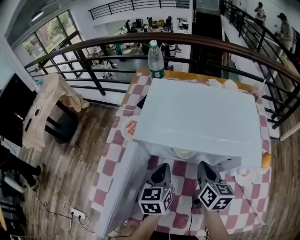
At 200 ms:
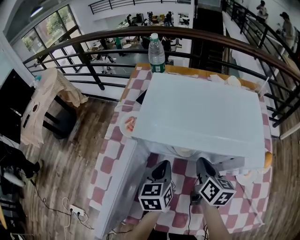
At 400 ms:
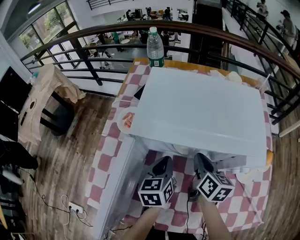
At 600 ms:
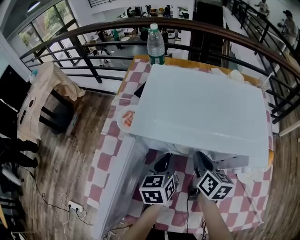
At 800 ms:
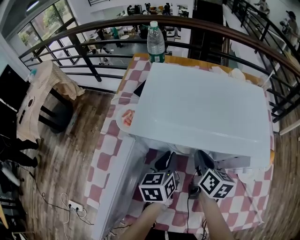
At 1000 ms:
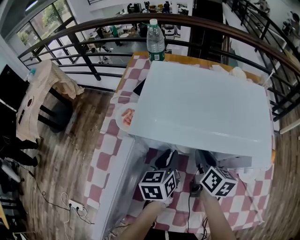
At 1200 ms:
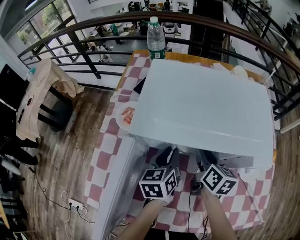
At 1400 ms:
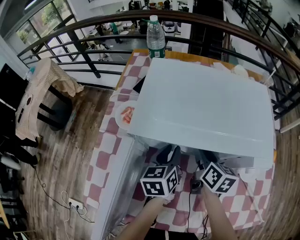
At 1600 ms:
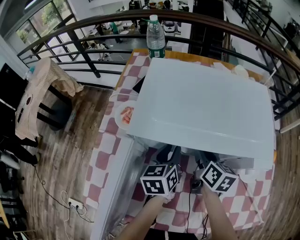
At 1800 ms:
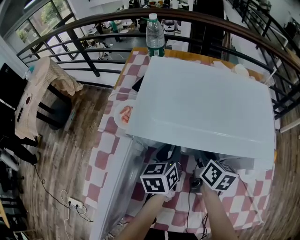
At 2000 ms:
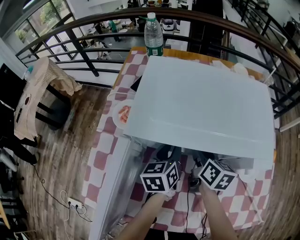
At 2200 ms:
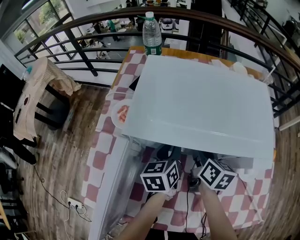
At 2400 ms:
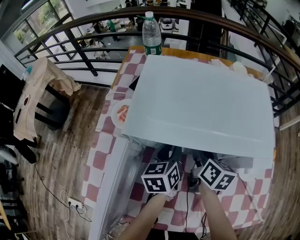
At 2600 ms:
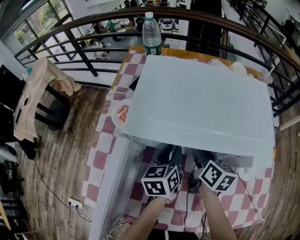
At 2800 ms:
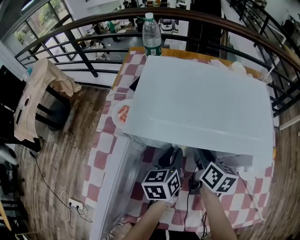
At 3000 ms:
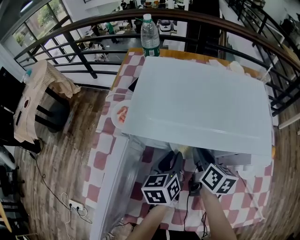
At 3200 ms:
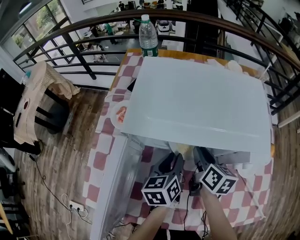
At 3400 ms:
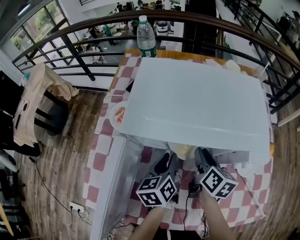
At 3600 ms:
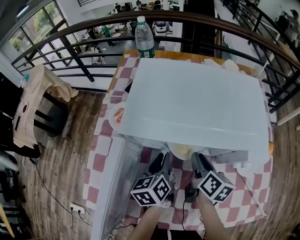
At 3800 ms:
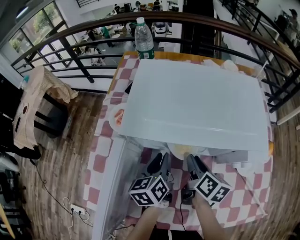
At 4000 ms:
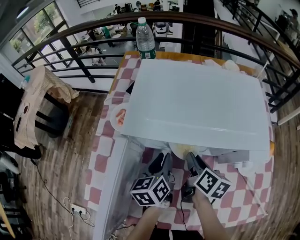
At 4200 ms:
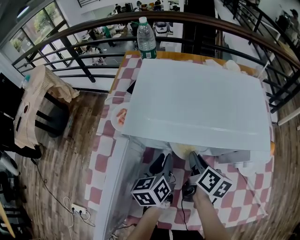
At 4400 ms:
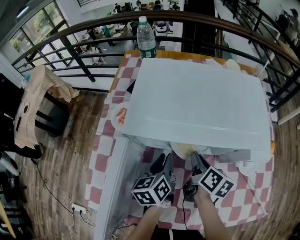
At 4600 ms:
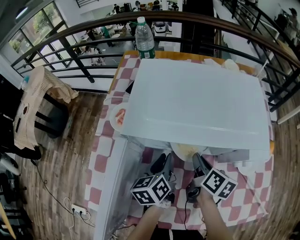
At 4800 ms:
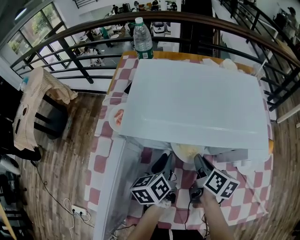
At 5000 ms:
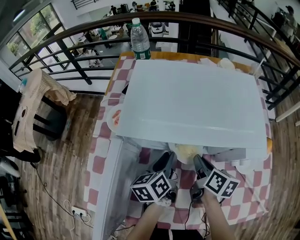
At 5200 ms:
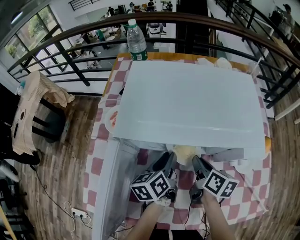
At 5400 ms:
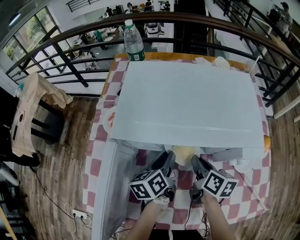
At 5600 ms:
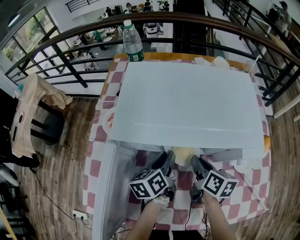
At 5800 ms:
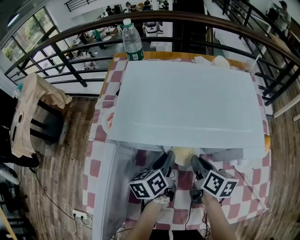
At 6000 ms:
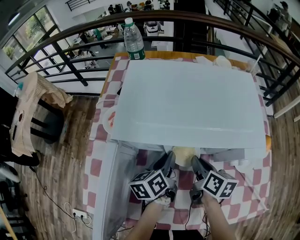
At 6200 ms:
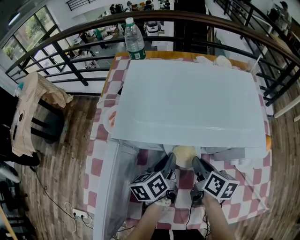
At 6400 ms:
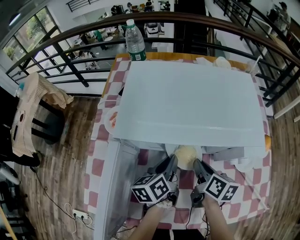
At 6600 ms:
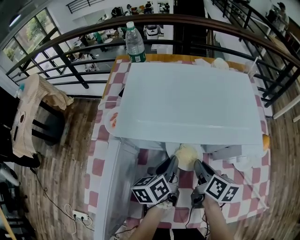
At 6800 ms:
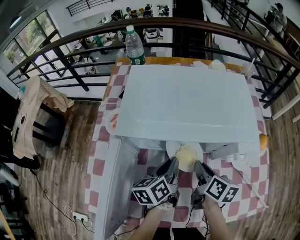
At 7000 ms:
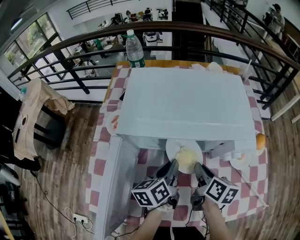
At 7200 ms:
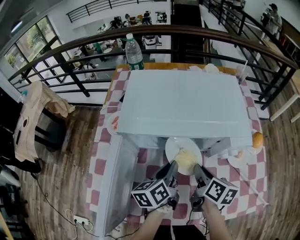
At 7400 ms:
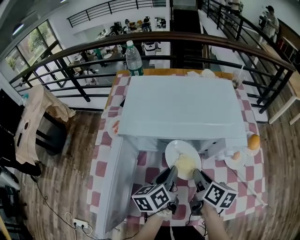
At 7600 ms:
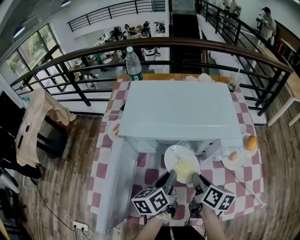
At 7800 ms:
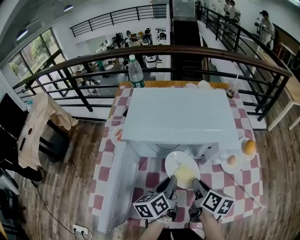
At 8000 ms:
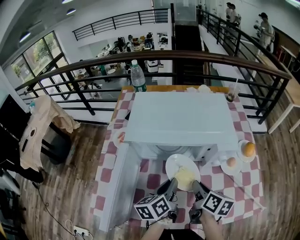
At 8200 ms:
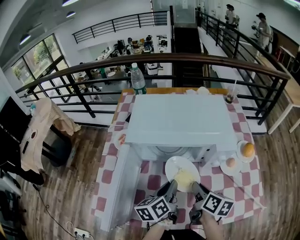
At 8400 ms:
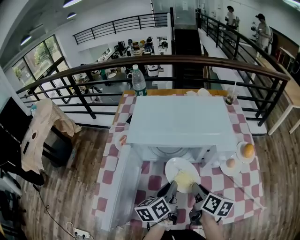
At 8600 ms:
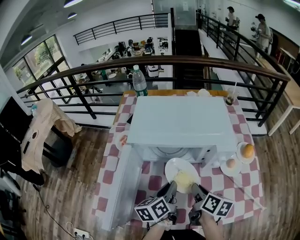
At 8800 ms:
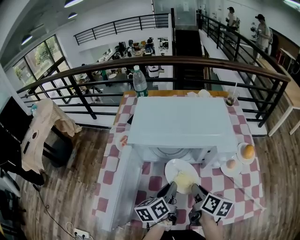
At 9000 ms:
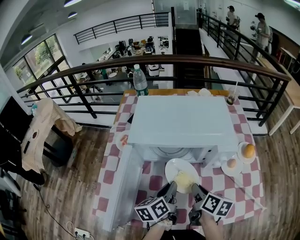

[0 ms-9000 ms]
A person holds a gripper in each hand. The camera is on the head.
0 ms to 1600 ms: The two grippers go approximately 5 cm forward. The left gripper opens. Meanwhile the right gripper opens up.
1600 ms to 4400 ms: The grippers make only small movements.
4400 ms to 6000 ms: There are only small adjustments of the grippers.
6000 ms to 7600 ms: The right gripper moves backward, about 10 cm. The left gripper moves backward and upward, approximately 10 cm.
7600 ms to 9000 ms: There are only small adjustments of the grippers.

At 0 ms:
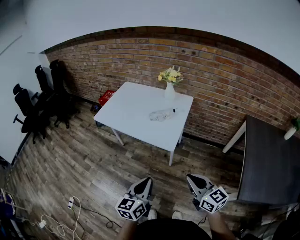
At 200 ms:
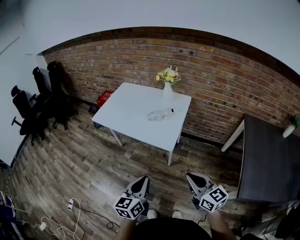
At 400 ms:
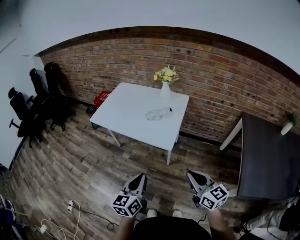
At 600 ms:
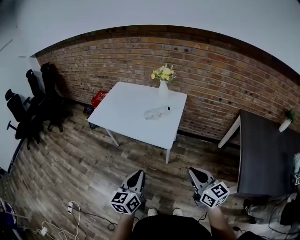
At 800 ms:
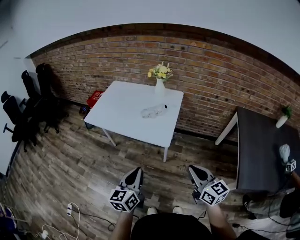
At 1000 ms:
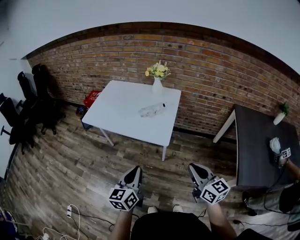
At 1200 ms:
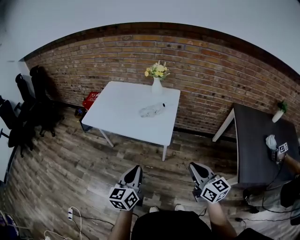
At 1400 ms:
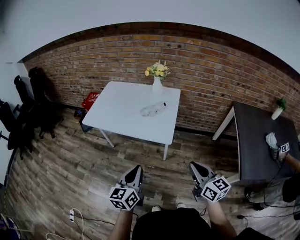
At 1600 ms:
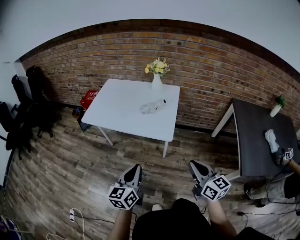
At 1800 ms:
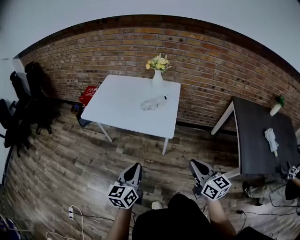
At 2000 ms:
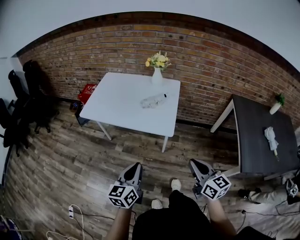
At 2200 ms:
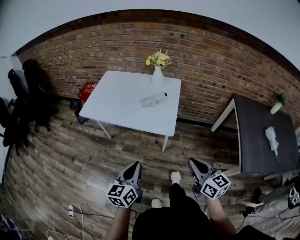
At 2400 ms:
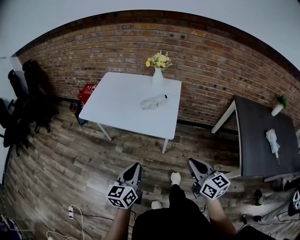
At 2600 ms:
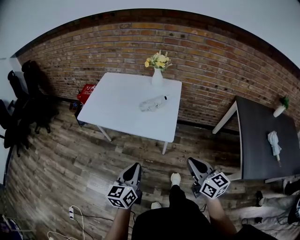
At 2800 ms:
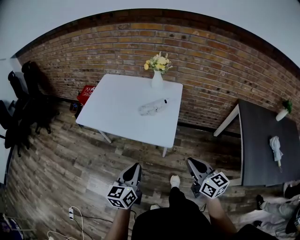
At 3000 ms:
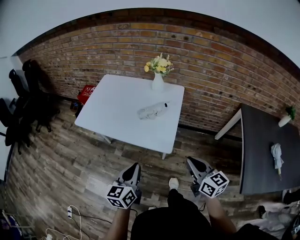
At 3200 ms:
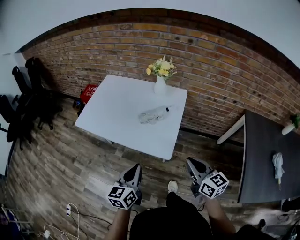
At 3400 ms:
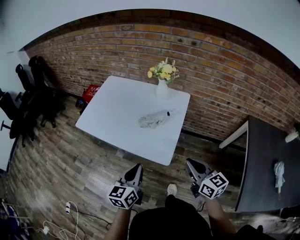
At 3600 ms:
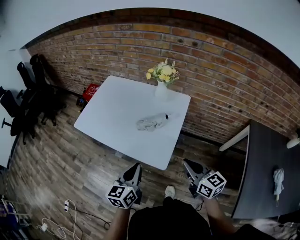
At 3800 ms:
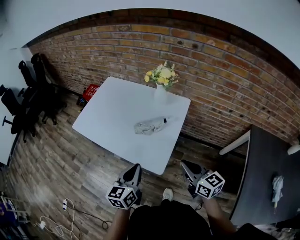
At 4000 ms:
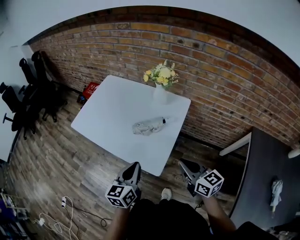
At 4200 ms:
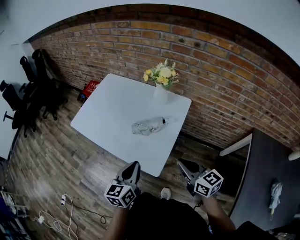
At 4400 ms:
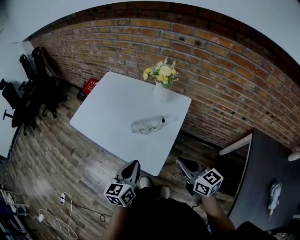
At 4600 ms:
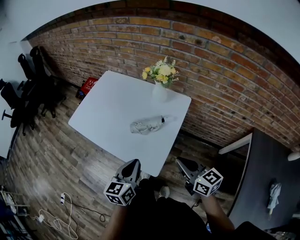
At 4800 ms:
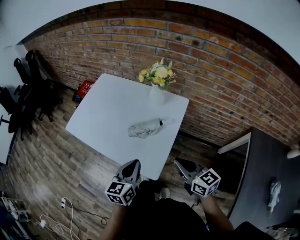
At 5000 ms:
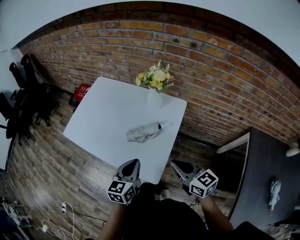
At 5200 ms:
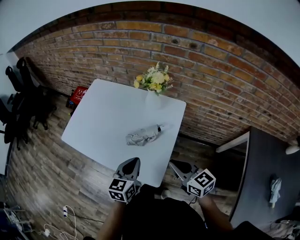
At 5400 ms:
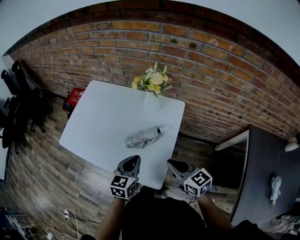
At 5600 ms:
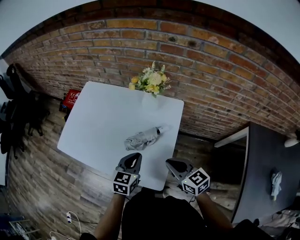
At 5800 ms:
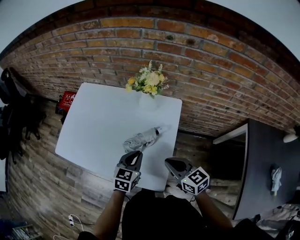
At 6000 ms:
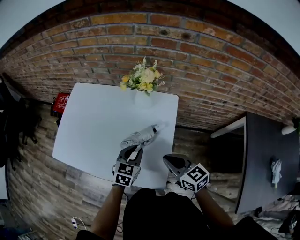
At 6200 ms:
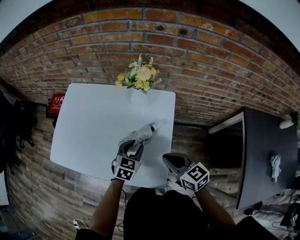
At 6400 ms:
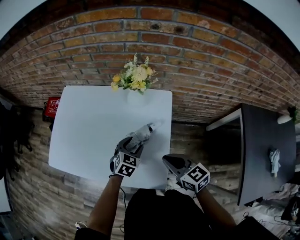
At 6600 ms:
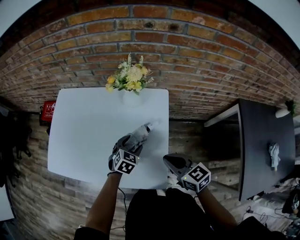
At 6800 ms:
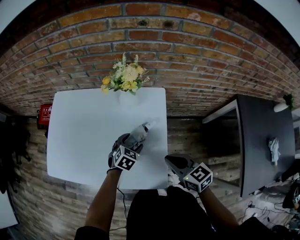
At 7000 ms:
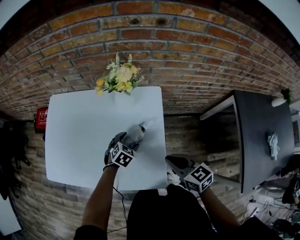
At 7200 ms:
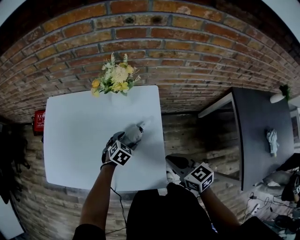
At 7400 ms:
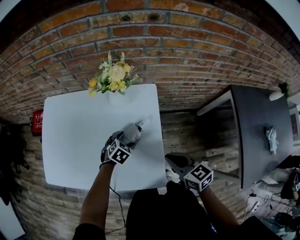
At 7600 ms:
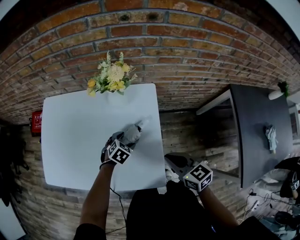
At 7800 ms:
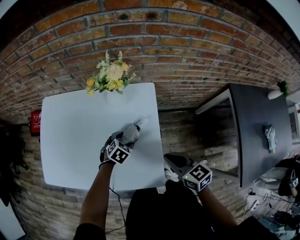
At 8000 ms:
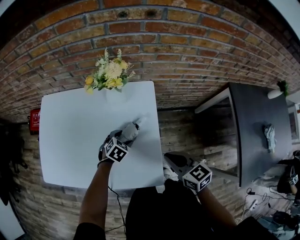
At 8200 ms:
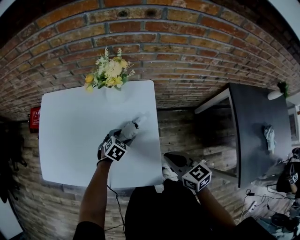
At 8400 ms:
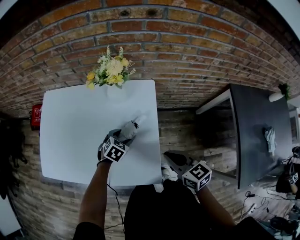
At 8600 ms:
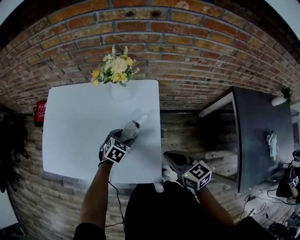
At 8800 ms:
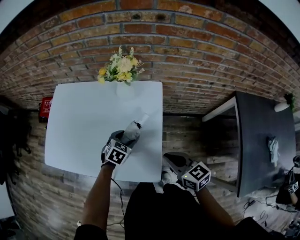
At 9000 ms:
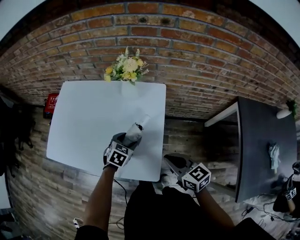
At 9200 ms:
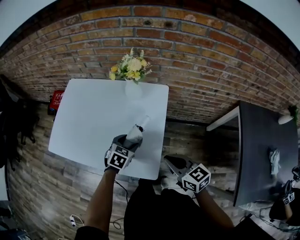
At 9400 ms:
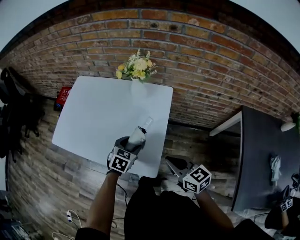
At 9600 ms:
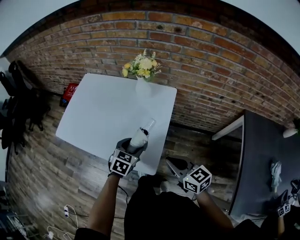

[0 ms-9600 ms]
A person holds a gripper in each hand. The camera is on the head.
0 ms to 1600 ms: The left gripper goes about 10 cm to the left.
1600 ms to 3200 ms: Both grippers travel together forward, some 15 cm.
3200 ms to 4800 ms: The right gripper is displaced forward by roughly 15 cm, while the left gripper goes some 15 cm forward and to the right.
4800 ms to 6400 ms: The right gripper moves forward and downward, approximately 10 cm, while the left gripper goes about 25 cm forward and downward, changes its angle by roughly 50 degrees, and opens up.
6400 ms to 8000 ms: The right gripper shifts by approximately 5 cm, while the left gripper travels downward by roughly 10 cm, and rotates roughly 20 degrees.
8000 ms to 9600 ms: The left gripper moves backward and upward, approximately 20 cm, and swivels roughly 30 degrees. Meanwhile the right gripper shifts some 10 cm backward, and rotates roughly 20 degrees.

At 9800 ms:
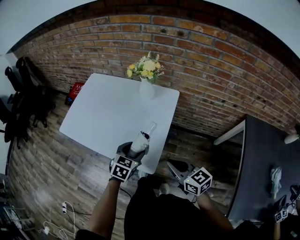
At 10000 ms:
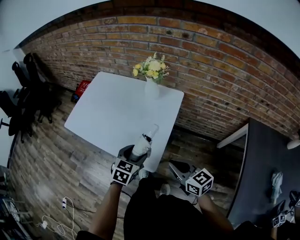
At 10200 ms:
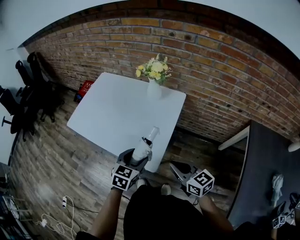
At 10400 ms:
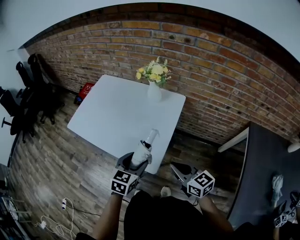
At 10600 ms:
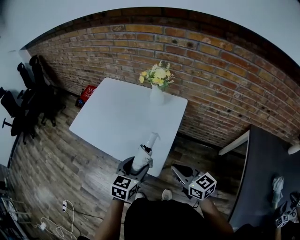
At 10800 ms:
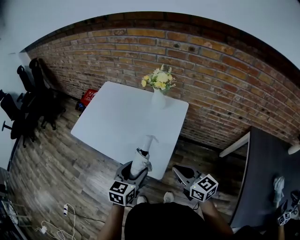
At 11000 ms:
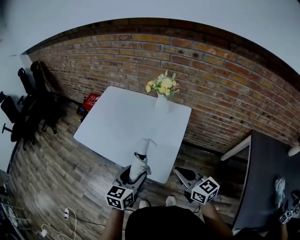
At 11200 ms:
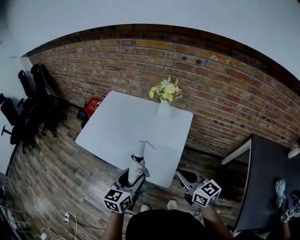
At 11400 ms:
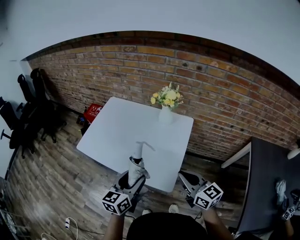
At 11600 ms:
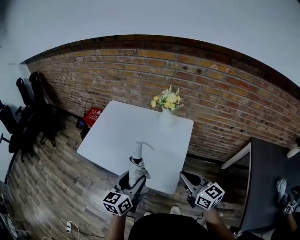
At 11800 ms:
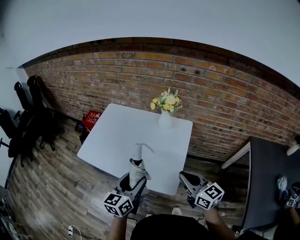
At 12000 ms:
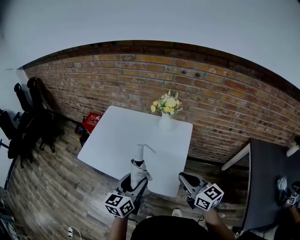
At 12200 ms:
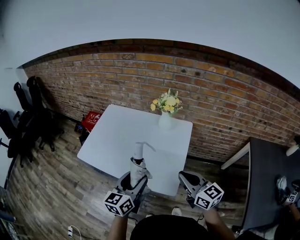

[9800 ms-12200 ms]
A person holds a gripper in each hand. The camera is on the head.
9800 ms to 11000 ms: The left gripper is displaced upward, to the left and backward by approximately 15 cm, and turns by about 30 degrees; the right gripper goes some 5 cm upward.
11000 ms to 12200 ms: The left gripper heads upward and to the left, covering some 10 cm; the right gripper moves upward, about 5 cm.

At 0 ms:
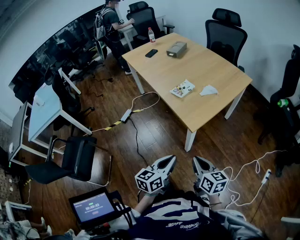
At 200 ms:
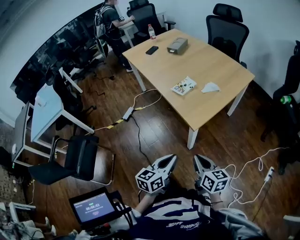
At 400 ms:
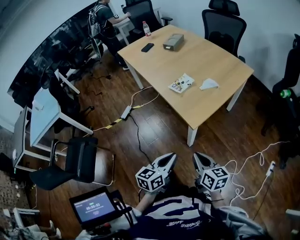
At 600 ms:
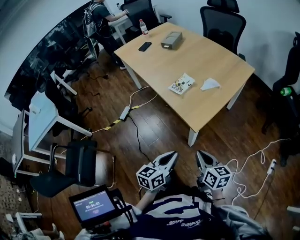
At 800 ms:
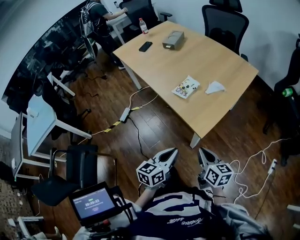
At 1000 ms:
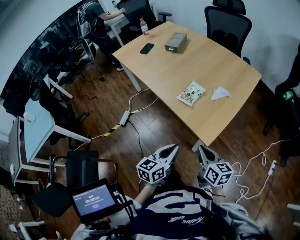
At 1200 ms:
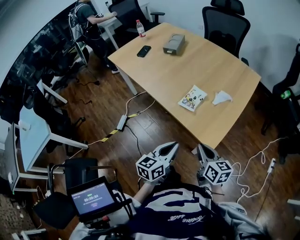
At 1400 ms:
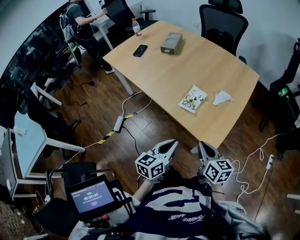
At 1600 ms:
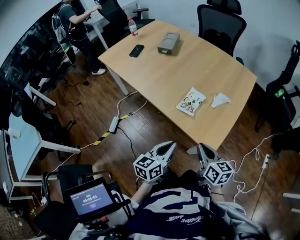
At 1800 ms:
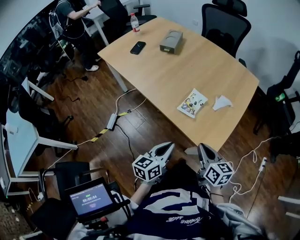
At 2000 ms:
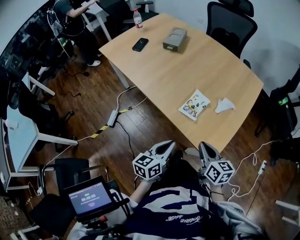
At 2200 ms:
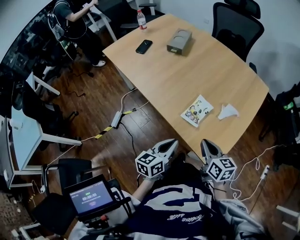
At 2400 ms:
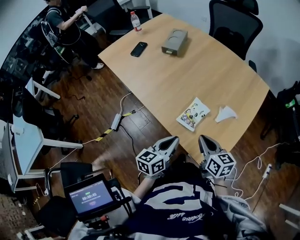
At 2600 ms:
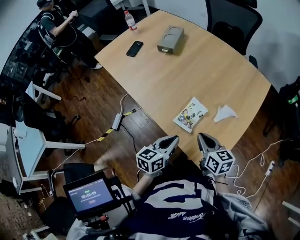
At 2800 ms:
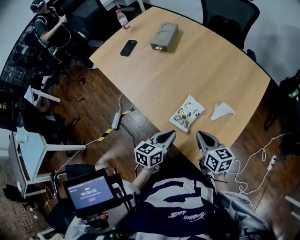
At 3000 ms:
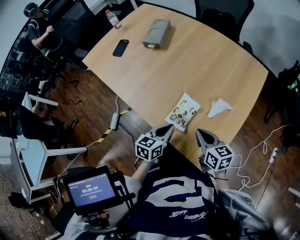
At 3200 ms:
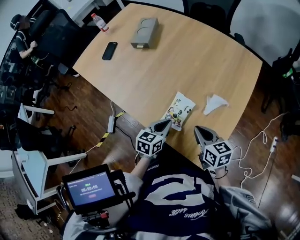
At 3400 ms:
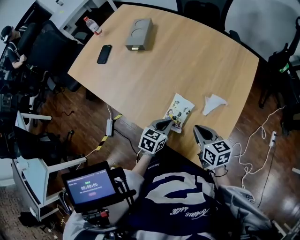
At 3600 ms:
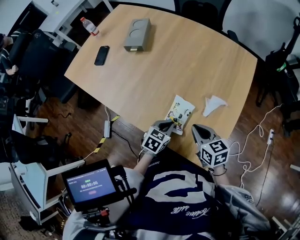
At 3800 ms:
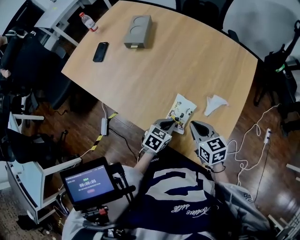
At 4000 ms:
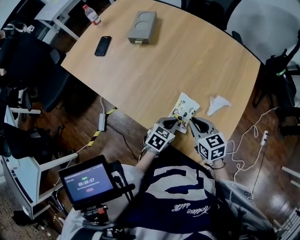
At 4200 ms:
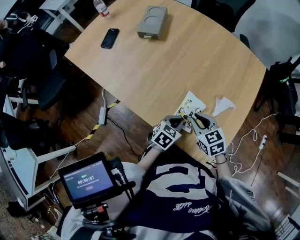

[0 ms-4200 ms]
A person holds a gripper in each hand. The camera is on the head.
0 ms to 1400 ms: The grippers both shift forward and to the left by roughly 30 cm.
1400 ms to 2800 ms: Both grippers move forward, approximately 20 cm.
2800 ms to 4200 ms: The left gripper moves downward and forward, some 15 cm, and turns by approximately 40 degrees; the right gripper goes roughly 10 cm forward and to the left, and changes its angle by about 30 degrees.